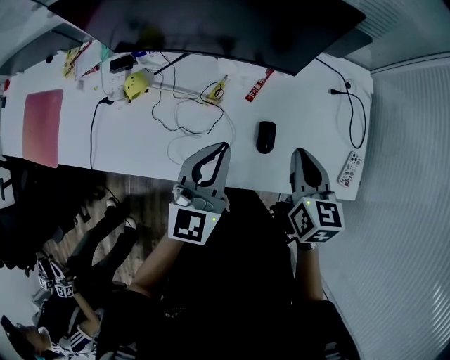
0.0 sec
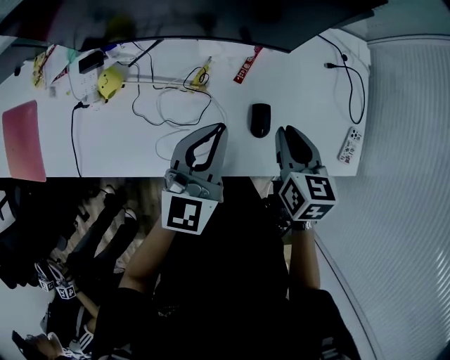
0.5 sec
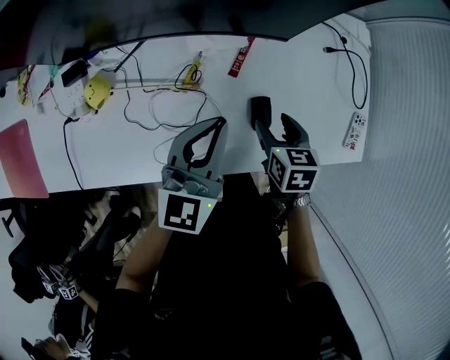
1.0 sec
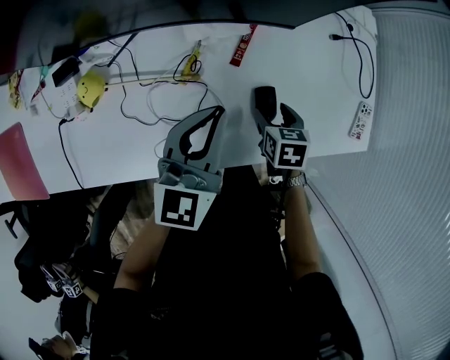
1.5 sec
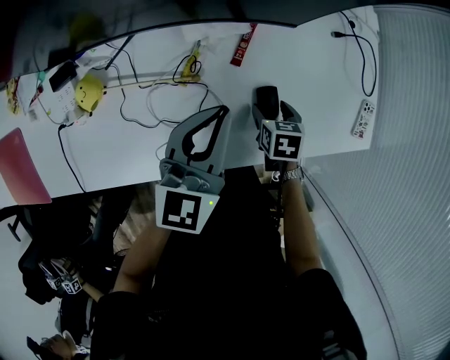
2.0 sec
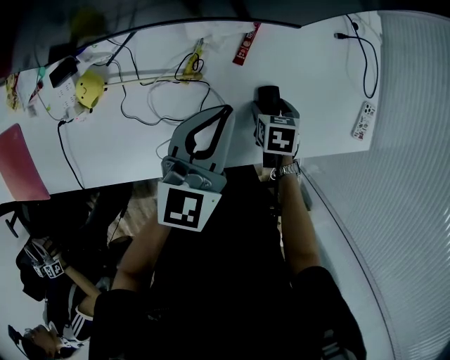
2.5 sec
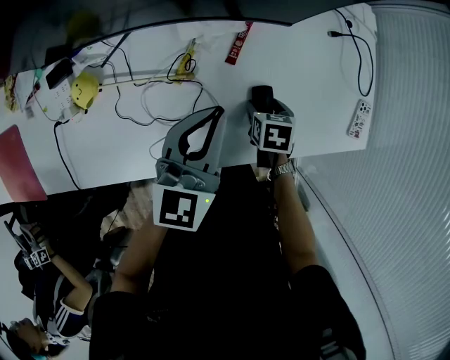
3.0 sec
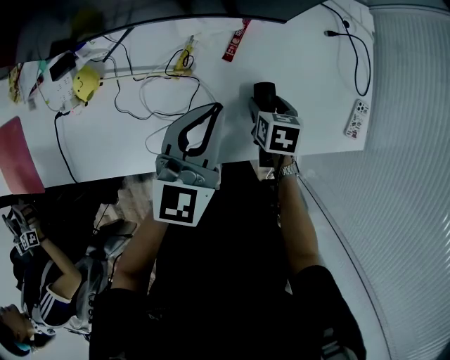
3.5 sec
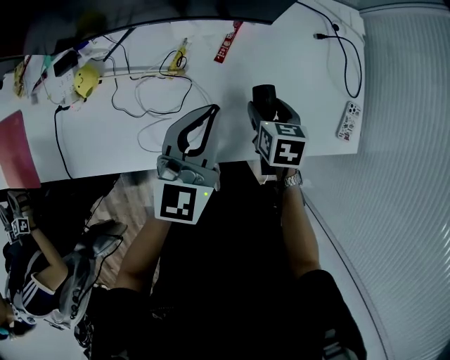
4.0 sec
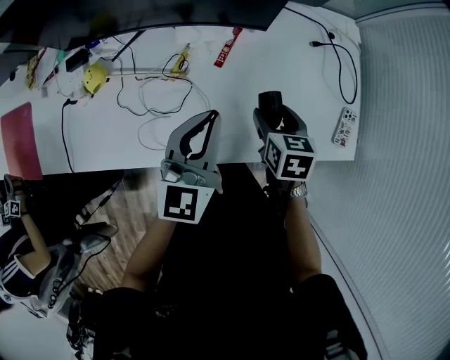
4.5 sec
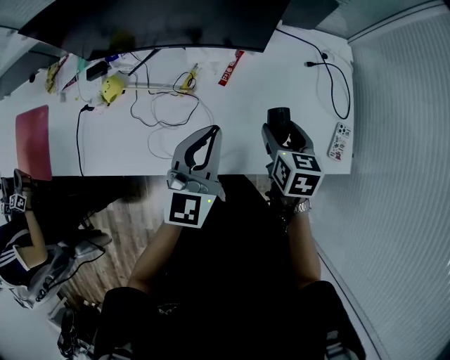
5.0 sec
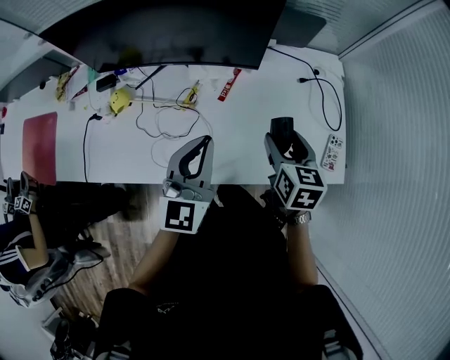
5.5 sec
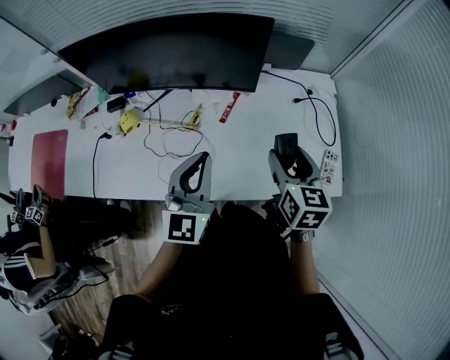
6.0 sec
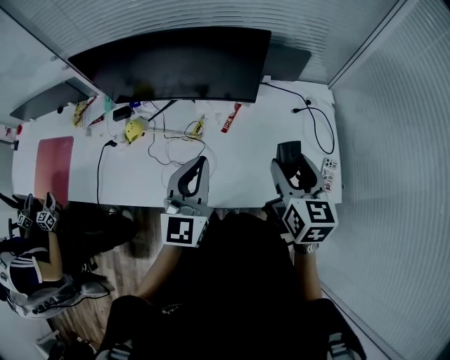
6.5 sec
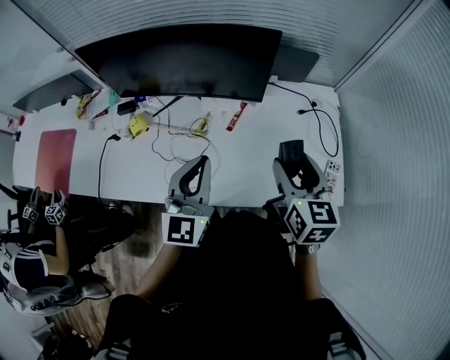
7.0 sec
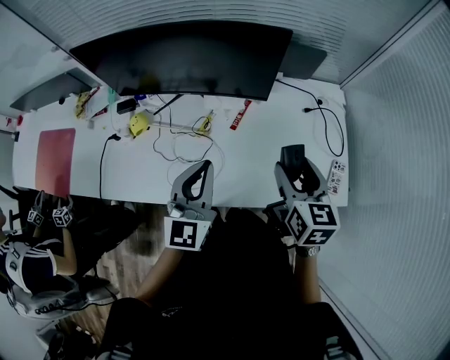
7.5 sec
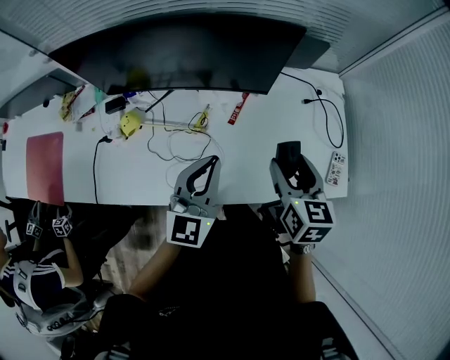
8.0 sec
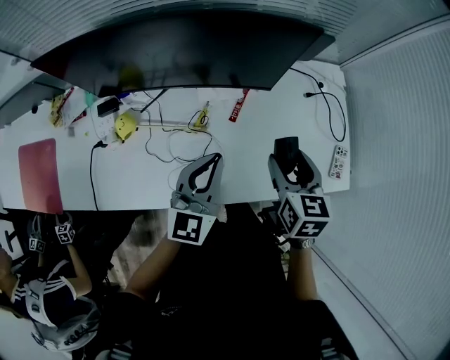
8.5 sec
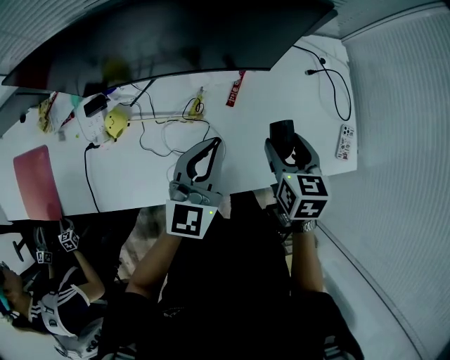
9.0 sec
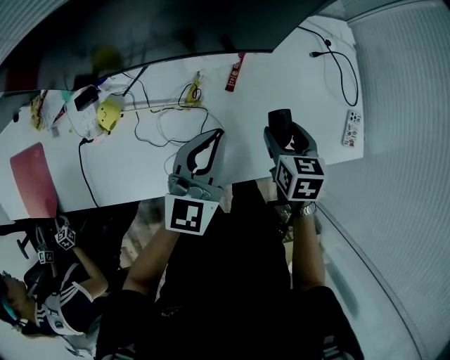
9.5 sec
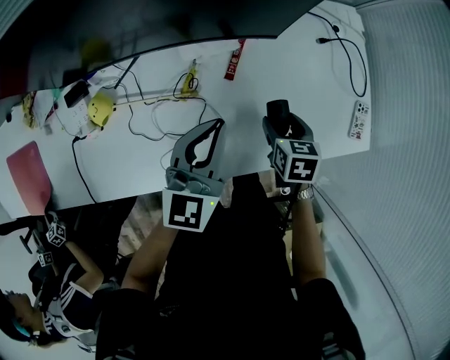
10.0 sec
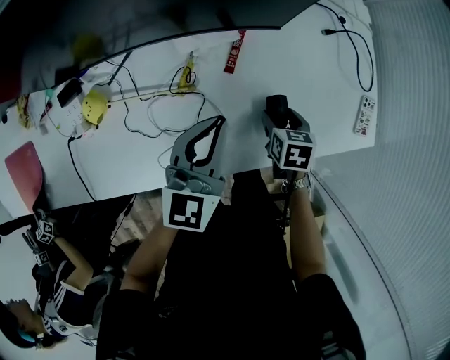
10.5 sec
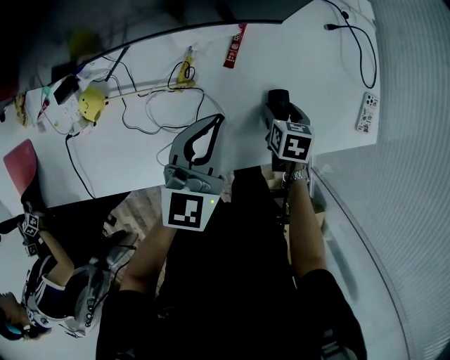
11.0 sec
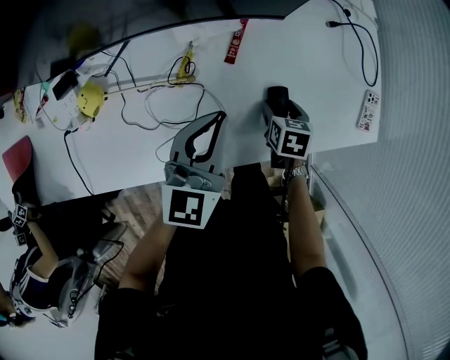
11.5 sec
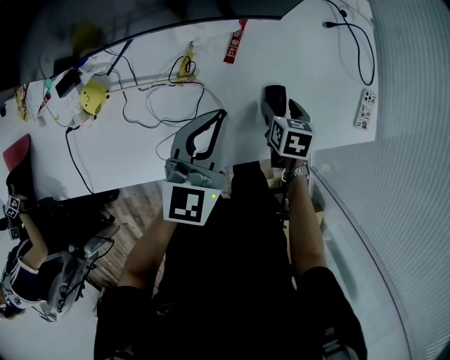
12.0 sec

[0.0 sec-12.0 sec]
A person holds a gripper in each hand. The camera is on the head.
0.0 sec to 2.0 sec: The right gripper moves downward, approximately 25 cm, tilts its fingers about 40 degrees downward, and opens its fingers. The left gripper shifts some 10 cm forward and downward.
2.0 sec to 4.0 sec: The right gripper moves upward, roughly 10 cm. The left gripper changes place by about 5 cm.
4.0 sec to 6.0 sec: The right gripper moves upward, roughly 25 cm, and angles its fingers upward, by about 30 degrees. Meanwhile the left gripper goes some 15 cm upward and backward.
6.0 sec to 8.0 sec: The right gripper is displaced to the left by roughly 5 cm.
8.0 sec to 10.0 sec: The right gripper travels downward by approximately 25 cm, and rotates roughly 30 degrees. Meanwhile the left gripper heads downward and forward, covering some 10 cm.
10.0 sec to 12.0 sec: The right gripper moves downward, roughly 5 cm.

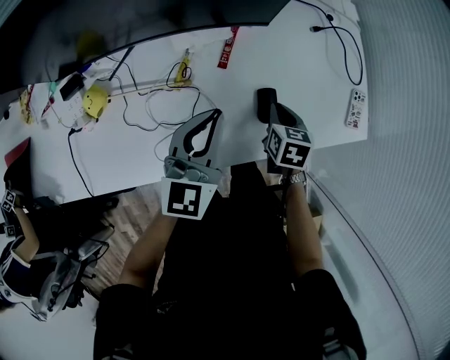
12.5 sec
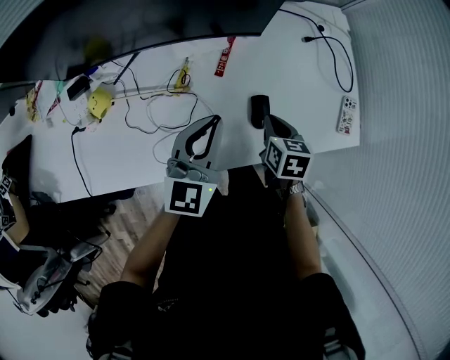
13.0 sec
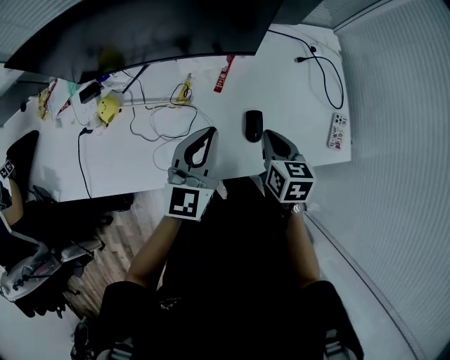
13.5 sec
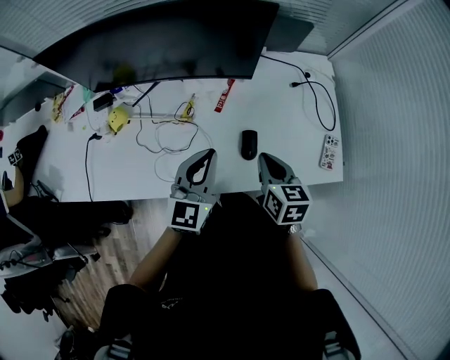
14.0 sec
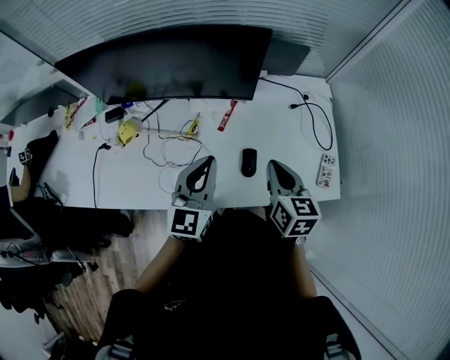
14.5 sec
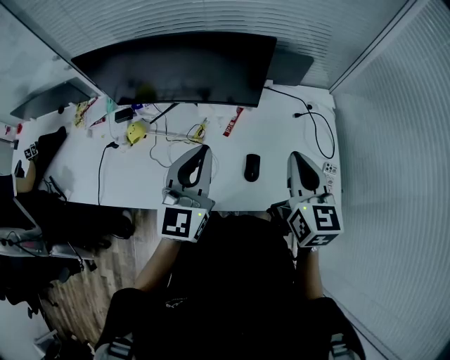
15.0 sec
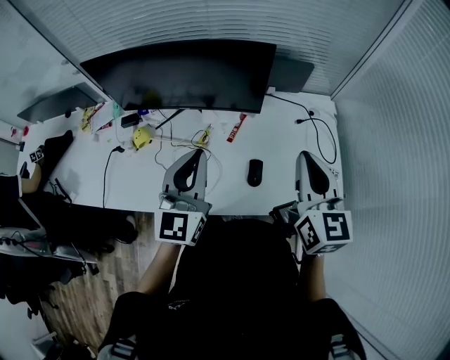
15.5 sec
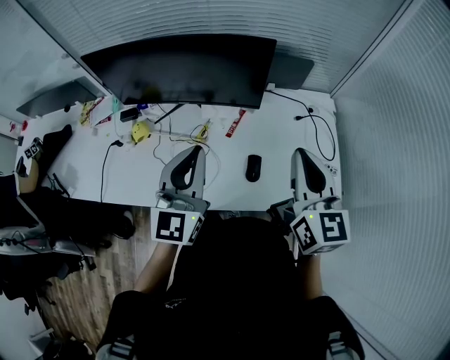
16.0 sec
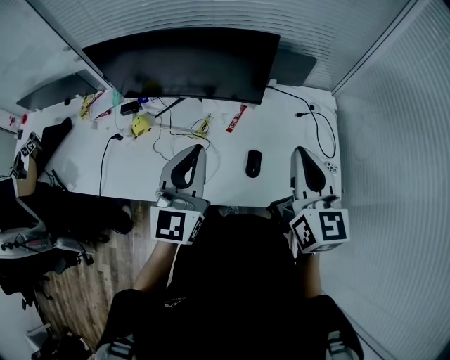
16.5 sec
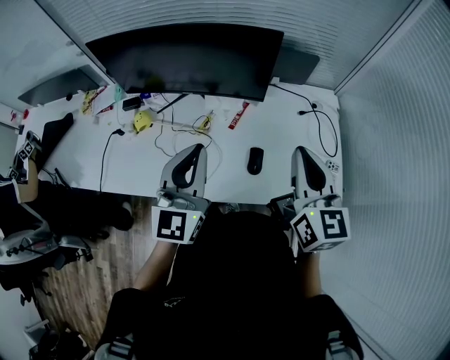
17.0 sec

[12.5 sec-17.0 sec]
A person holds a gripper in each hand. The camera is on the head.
12.5 sec to 14.5 sec: The right gripper shifts some 25 cm upward, and turns by some 30 degrees. Meanwhile the left gripper is displaced upward and backward by about 10 cm.
14.5 sec to 17.0 sec: The grippers both shift upward by roughly 15 cm. The right gripper turns by roughly 20 degrees.

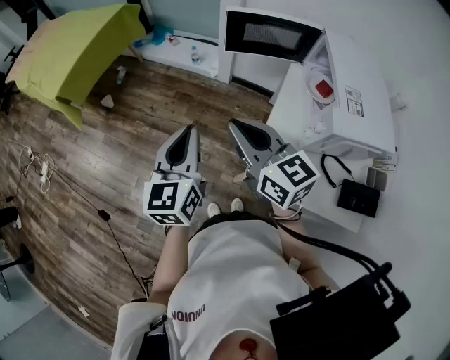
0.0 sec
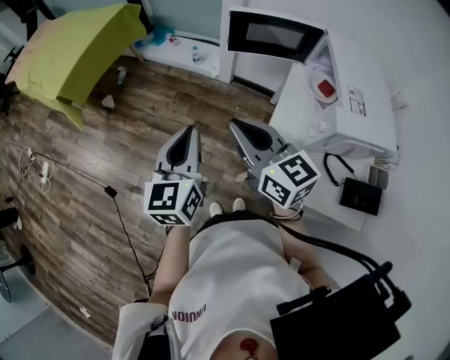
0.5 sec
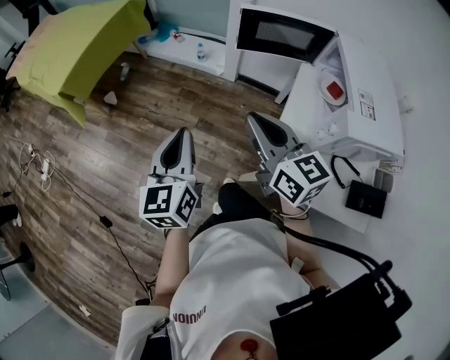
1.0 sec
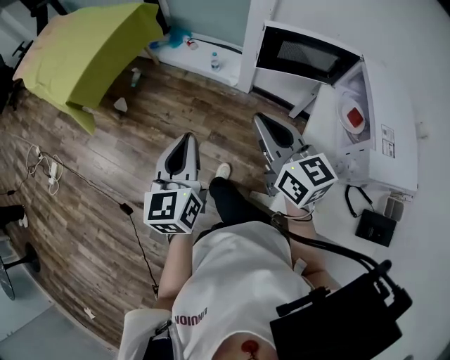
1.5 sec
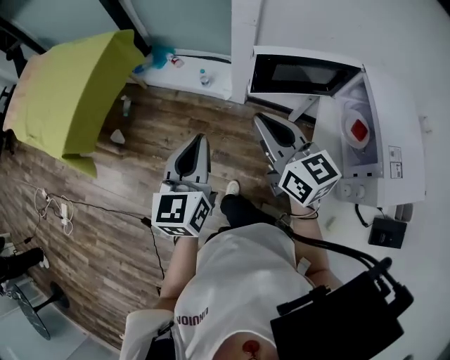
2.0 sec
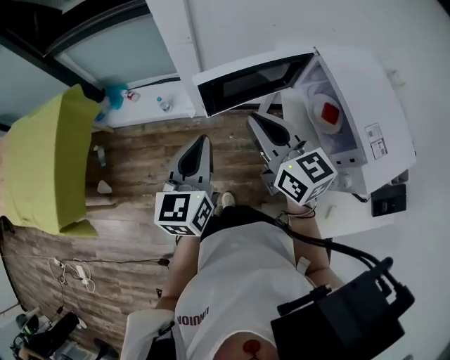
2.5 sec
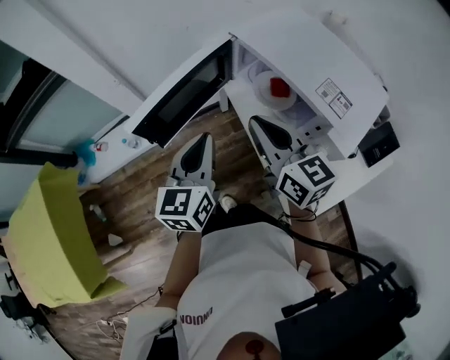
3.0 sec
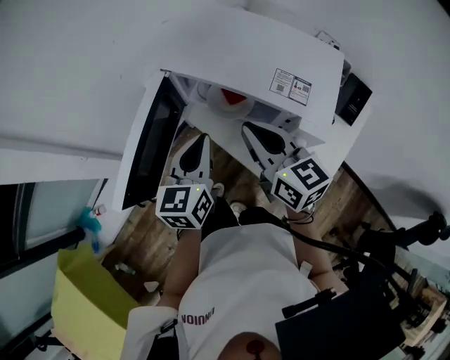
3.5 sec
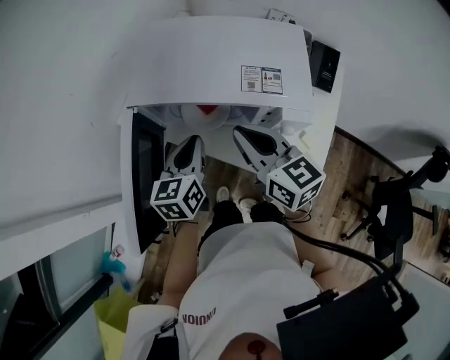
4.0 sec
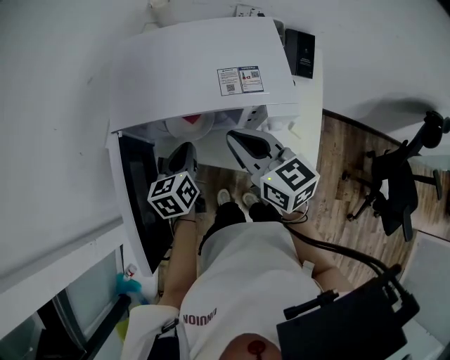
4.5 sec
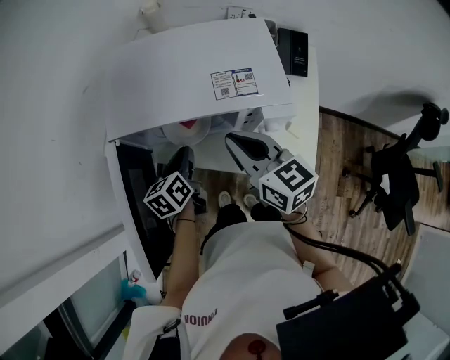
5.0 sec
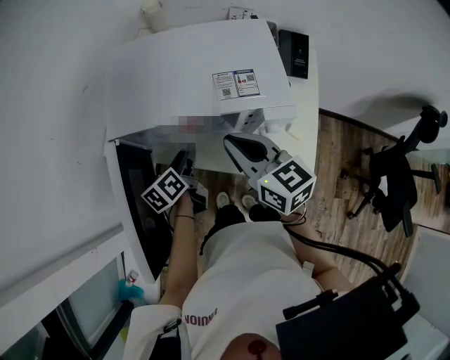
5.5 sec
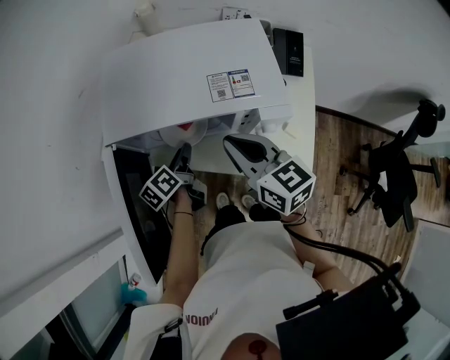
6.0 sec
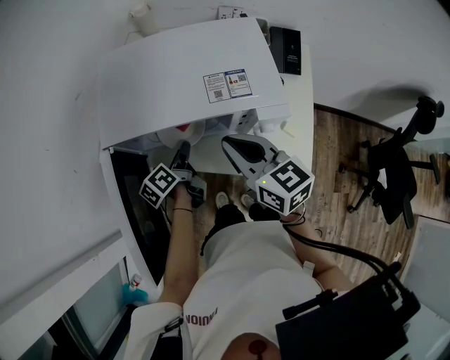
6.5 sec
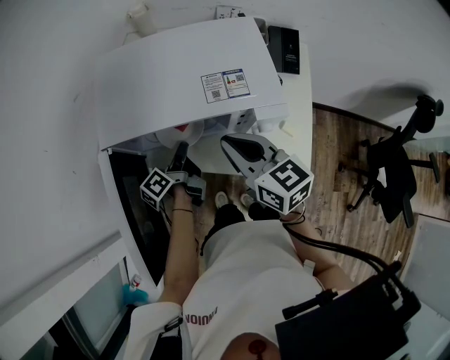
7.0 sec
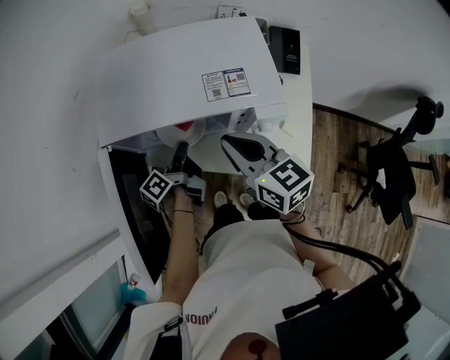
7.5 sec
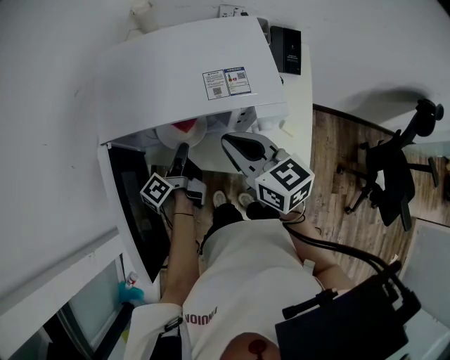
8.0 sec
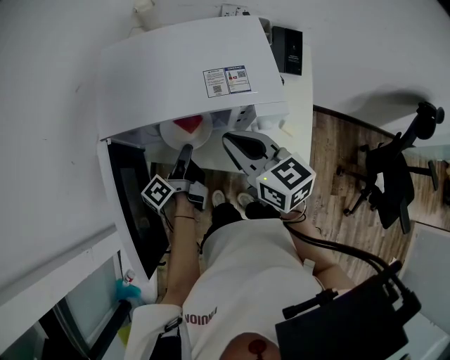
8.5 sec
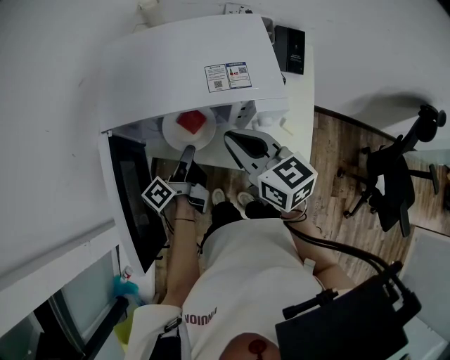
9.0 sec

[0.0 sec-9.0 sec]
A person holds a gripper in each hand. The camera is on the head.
0.0 sec to 2.0 sec: Both grippers move forward, roughly 25 cm.
2.0 sec to 4.5 sec: The left gripper shifts by approximately 40 cm, and rotates about 90 degrees. The right gripper moves roughly 30 cm, and turns by roughly 90 degrees.
4.5 sec to 7.0 sec: The left gripper is displaced downward by about 5 cm, and rolls counterclockwise, seen from behind, by roughly 50 degrees.
7.0 sec to 9.0 sec: The left gripper changes place by about 5 cm.

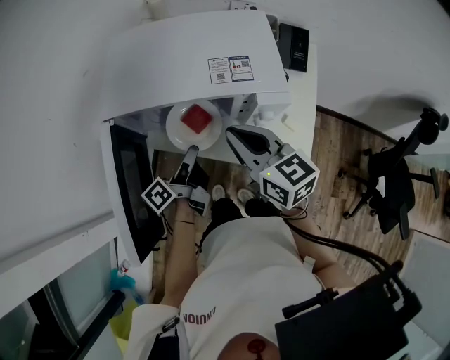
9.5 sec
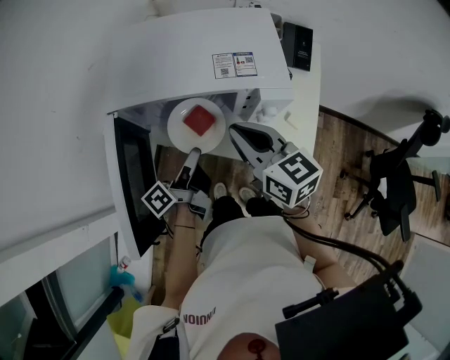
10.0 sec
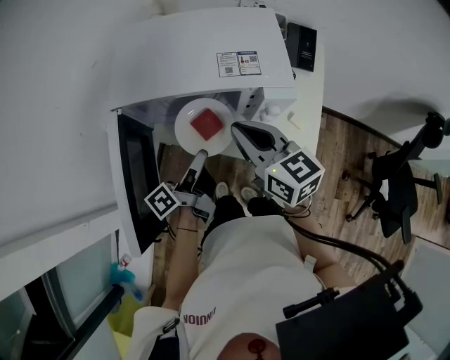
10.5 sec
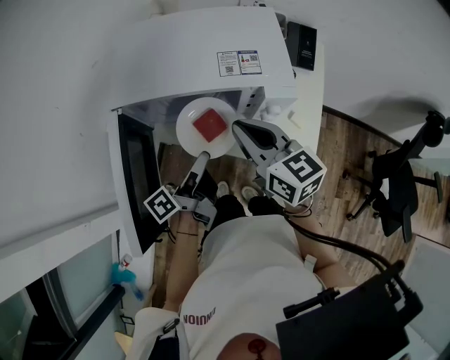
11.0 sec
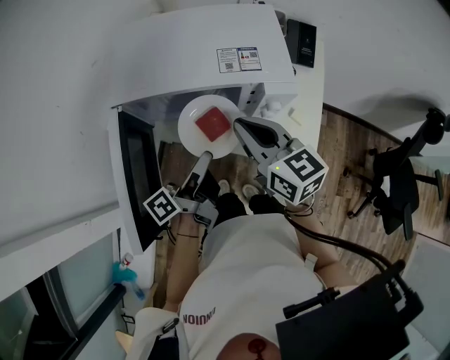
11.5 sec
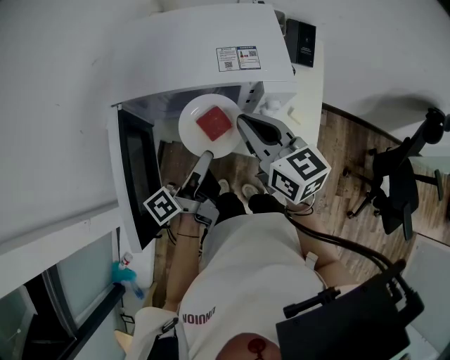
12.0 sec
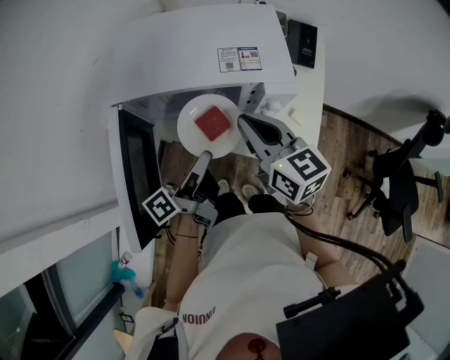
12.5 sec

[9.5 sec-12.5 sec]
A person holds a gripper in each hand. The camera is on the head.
9.5 sec to 11.0 sec: The left gripper shifts by roughly 5 cm.
11.0 sec to 12.5 sec: The grippers stay close to where they were, moving slightly.
